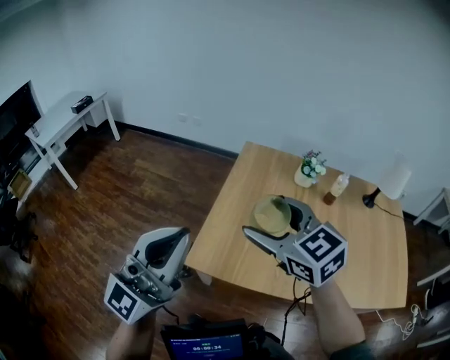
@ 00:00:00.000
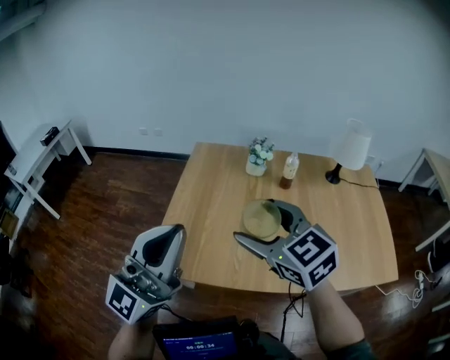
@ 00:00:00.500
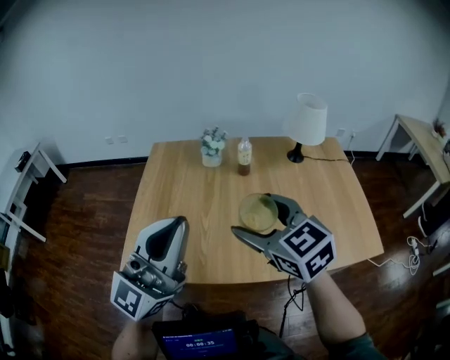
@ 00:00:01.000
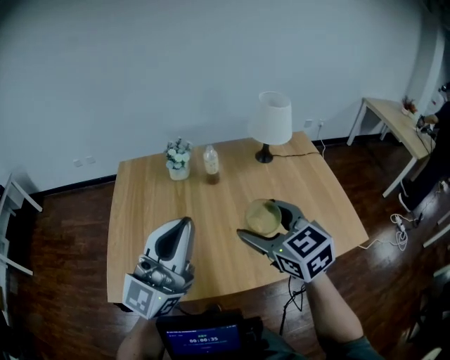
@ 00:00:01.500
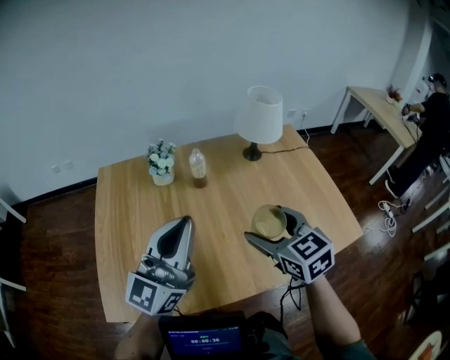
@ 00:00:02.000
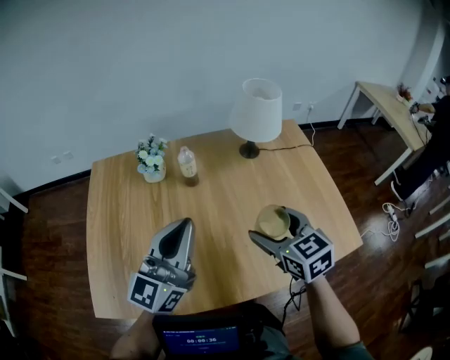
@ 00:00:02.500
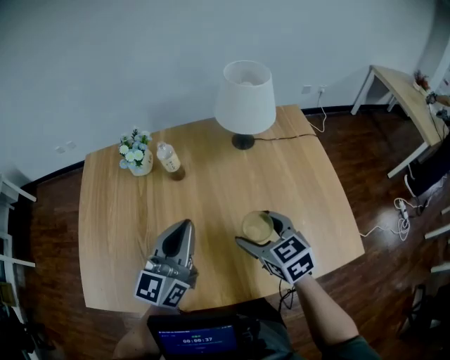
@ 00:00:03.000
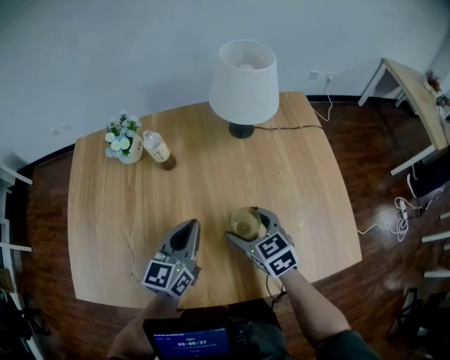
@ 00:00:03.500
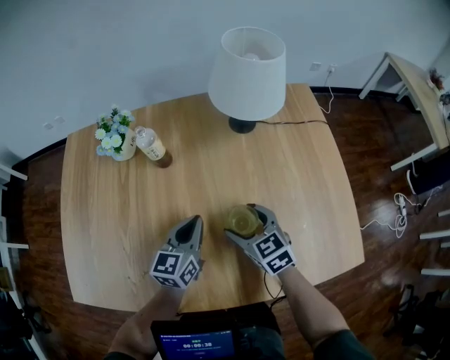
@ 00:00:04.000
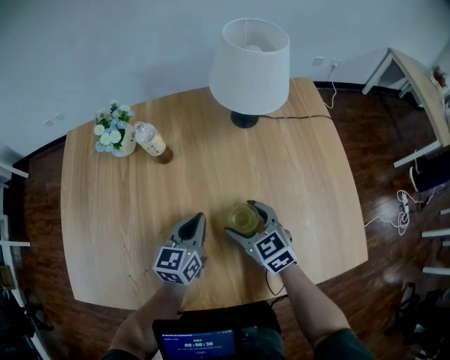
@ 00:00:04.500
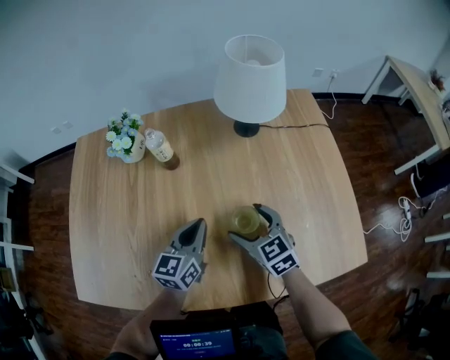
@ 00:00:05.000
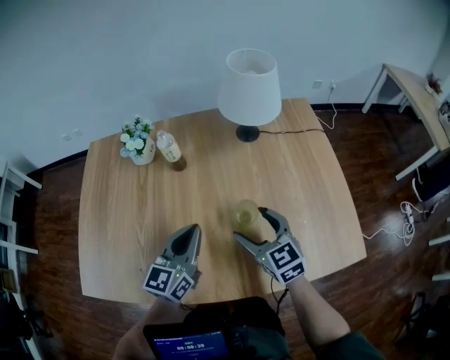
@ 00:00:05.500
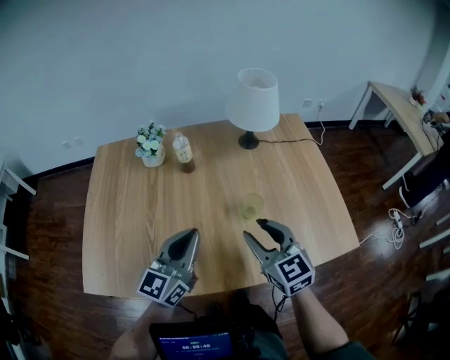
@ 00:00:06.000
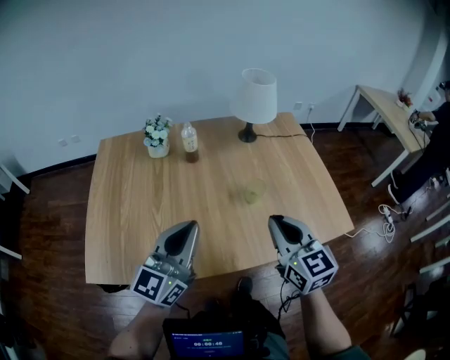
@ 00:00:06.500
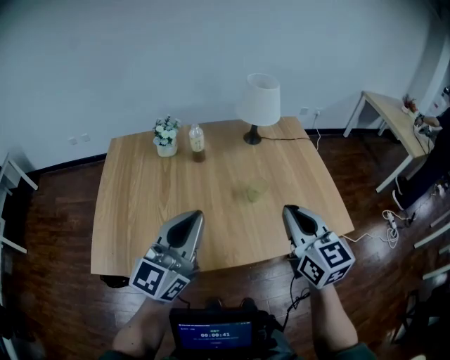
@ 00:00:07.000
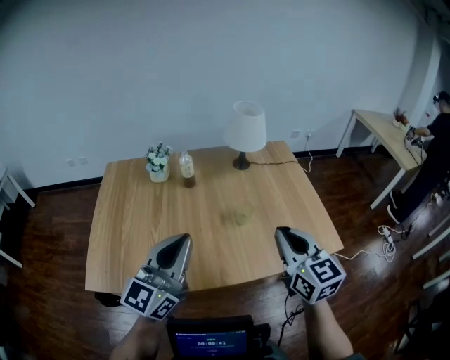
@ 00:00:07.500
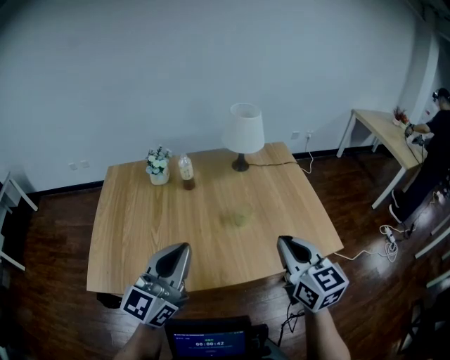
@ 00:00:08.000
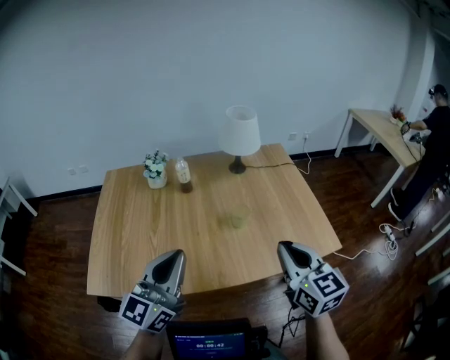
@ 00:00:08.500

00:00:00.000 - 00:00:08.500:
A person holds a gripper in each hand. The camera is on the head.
00:00:00.000 - 00:00:02.000: The two grippers travel together, some 40 cm. The left gripper turns by approximately 40 degrees. The right gripper turns by roughly 40 degrees.
00:00:02.000 - 00:00:04.000: The grippers both shift downward, to the right and forward by approximately 30 cm. The left gripper angles its fingers downward, by about 40 degrees.
00:00:04.000 - 00:00:06.500: The right gripper is displaced upward and backward by approximately 30 cm, turns by some 30 degrees, and closes. Meanwhile the left gripper is displaced backward, upward and to the left by roughly 30 cm, and turns by roughly 30 degrees.
00:00:06.500 - 00:00:08.500: The right gripper travels to the right, backward and upward by approximately 10 cm. The left gripper moves upward and backward, roughly 10 cm.

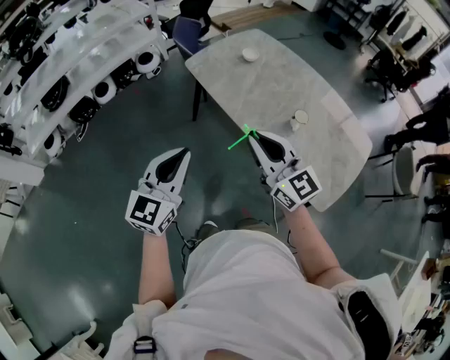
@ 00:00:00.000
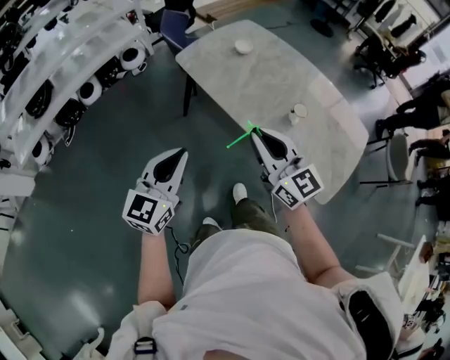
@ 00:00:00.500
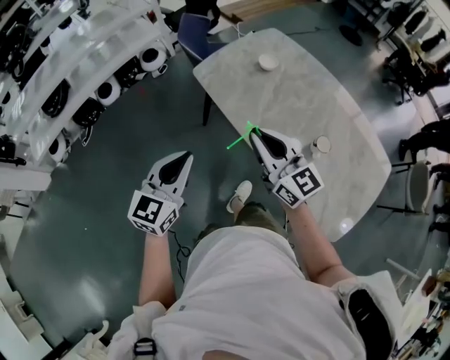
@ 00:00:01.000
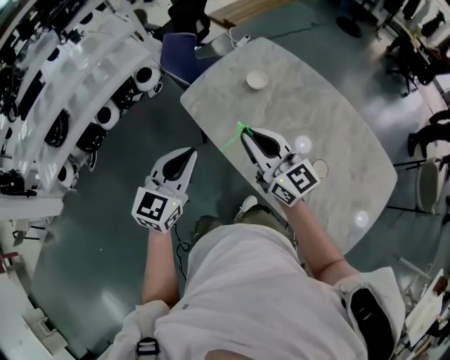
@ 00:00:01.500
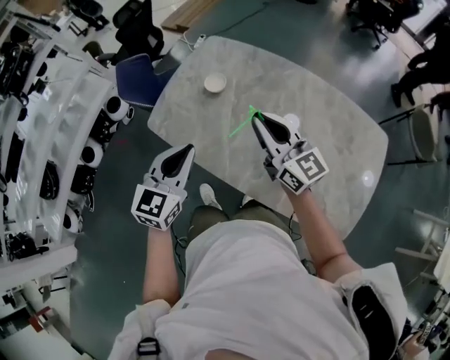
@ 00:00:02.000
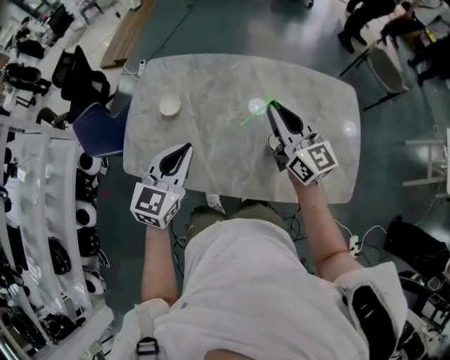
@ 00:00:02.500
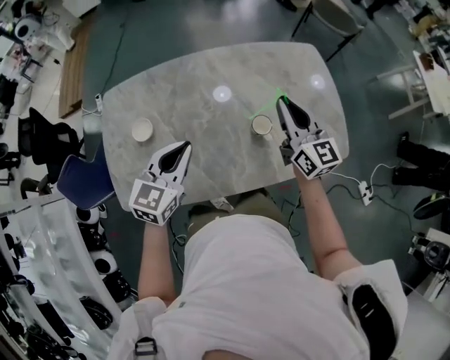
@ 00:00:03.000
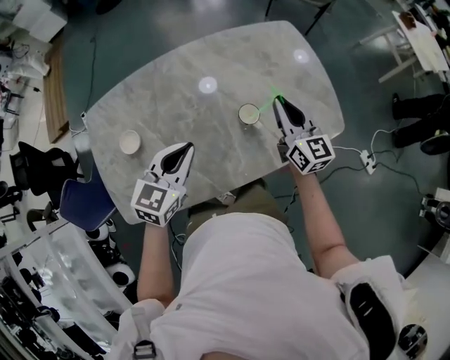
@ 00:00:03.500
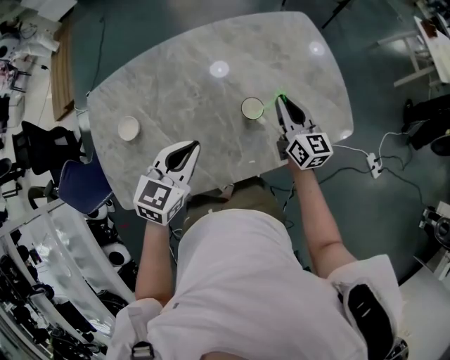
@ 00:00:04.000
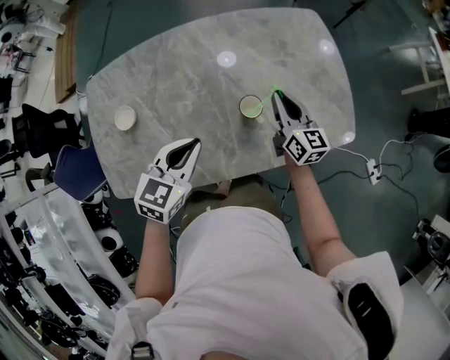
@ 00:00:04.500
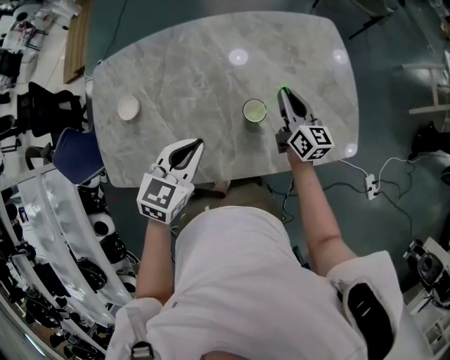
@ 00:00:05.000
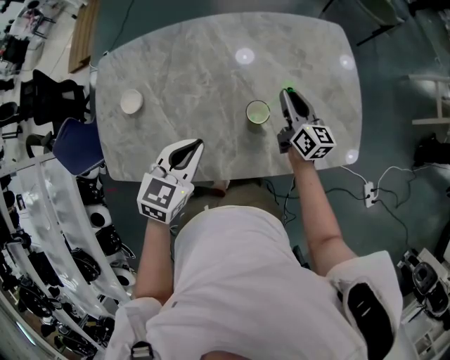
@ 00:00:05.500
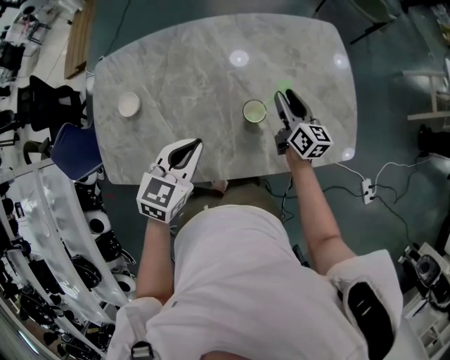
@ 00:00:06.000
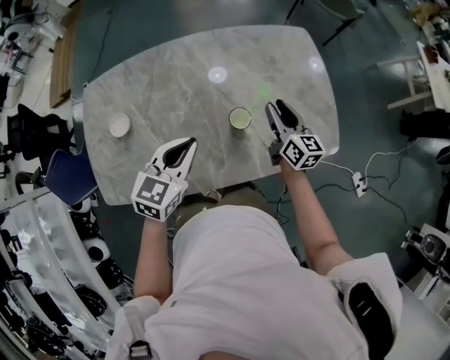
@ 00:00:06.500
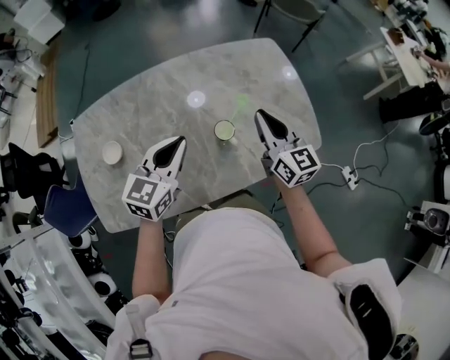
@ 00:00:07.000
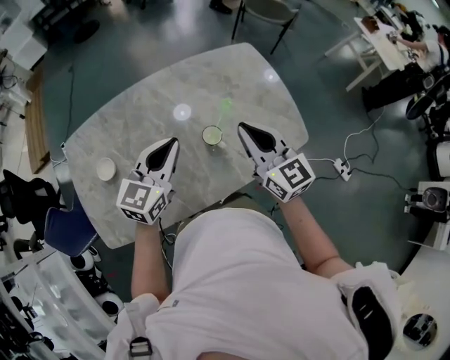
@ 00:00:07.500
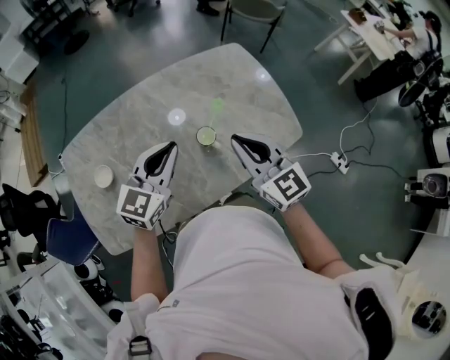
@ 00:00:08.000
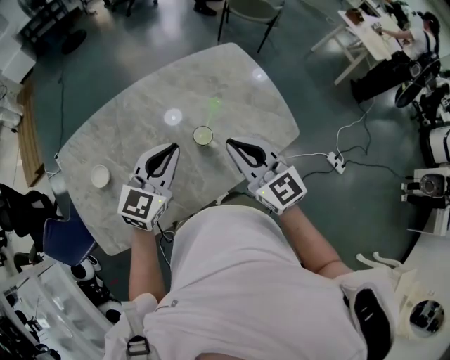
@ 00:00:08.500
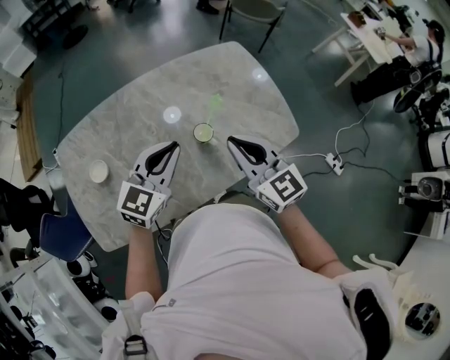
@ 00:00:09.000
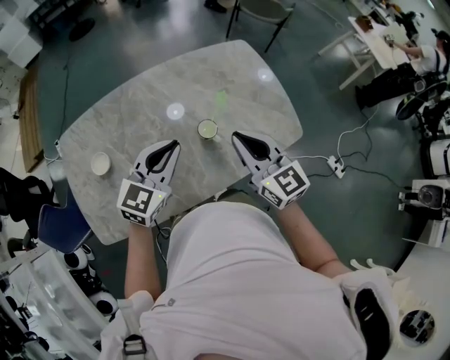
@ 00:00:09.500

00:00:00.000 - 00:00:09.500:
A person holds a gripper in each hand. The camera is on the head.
00:00:00.000 - 00:00:02.000: The pair of grippers is taken forward, roughly 40 cm. The right gripper turns by about 20 degrees. The left gripper changes its angle by roughly 20 degrees.
00:00:02.000 - 00:00:04.000: The right gripper moves approximately 30 cm, and rotates about 70 degrees. Meanwhile the left gripper ends up about 20 cm from where it was, and swivels some 60 degrees.
00:00:04.000 - 00:00:05.500: The right gripper heads forward and downward, covering some 10 cm.
00:00:05.500 - 00:00:07.500: The left gripper heads upward, covering about 10 cm, and rotates approximately 30 degrees; the right gripper is displaced upward and backward by roughly 25 cm, turns by some 30 degrees, and opens, then closes again.
00:00:07.500 - 00:00:09.500: The grippers move only a little.

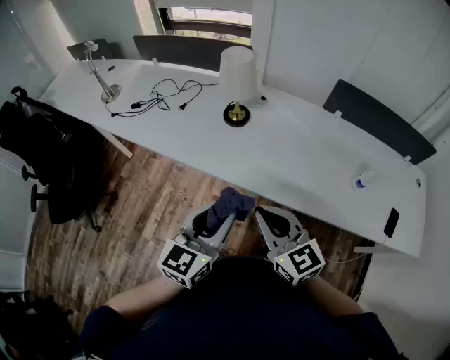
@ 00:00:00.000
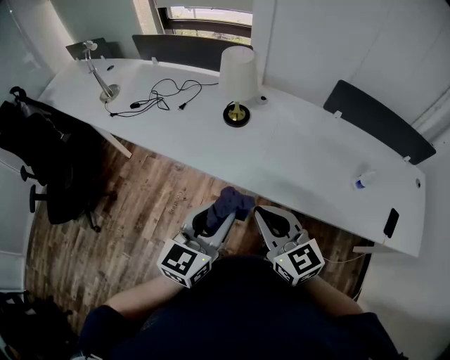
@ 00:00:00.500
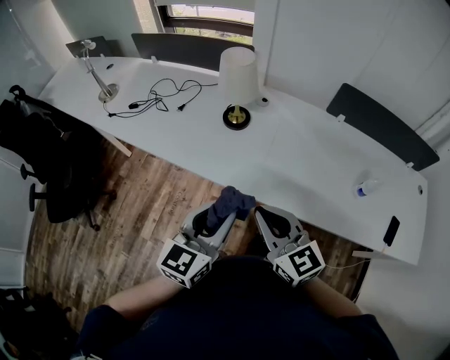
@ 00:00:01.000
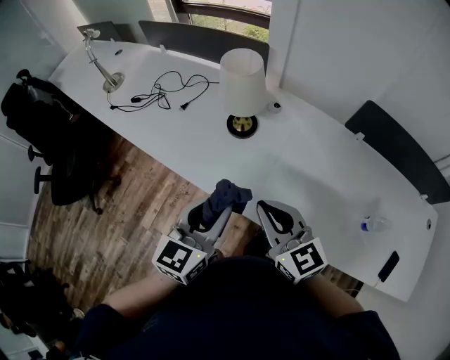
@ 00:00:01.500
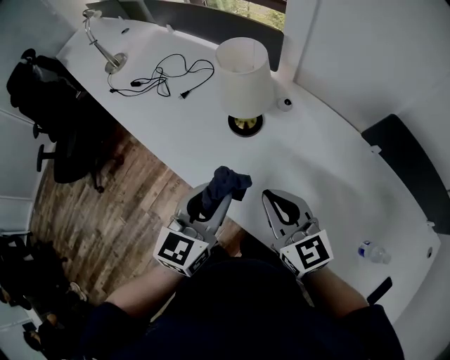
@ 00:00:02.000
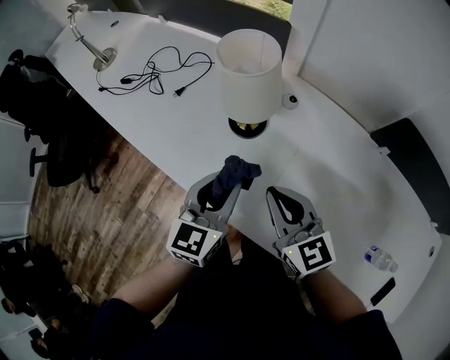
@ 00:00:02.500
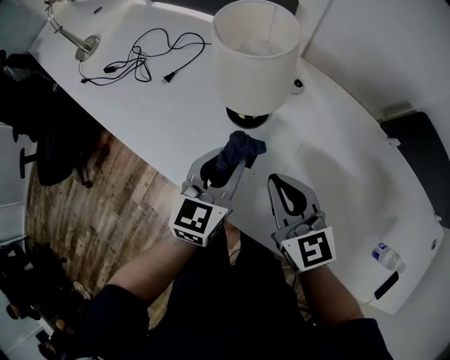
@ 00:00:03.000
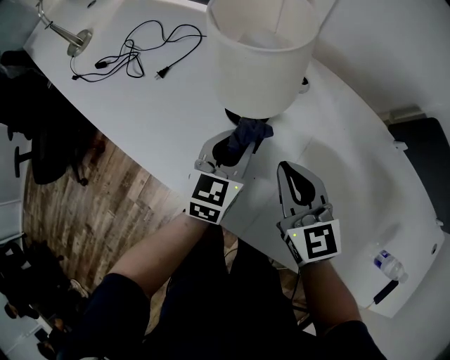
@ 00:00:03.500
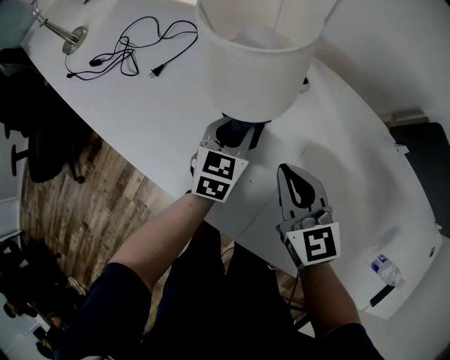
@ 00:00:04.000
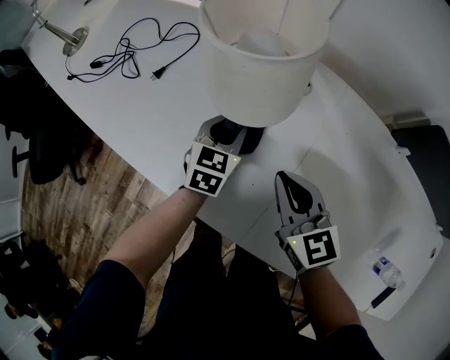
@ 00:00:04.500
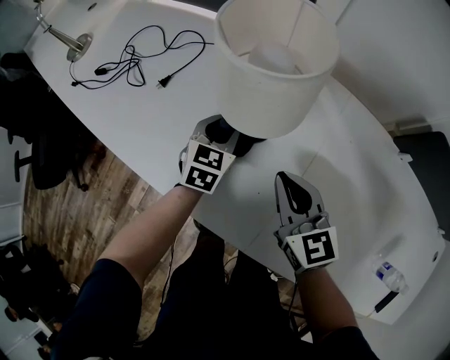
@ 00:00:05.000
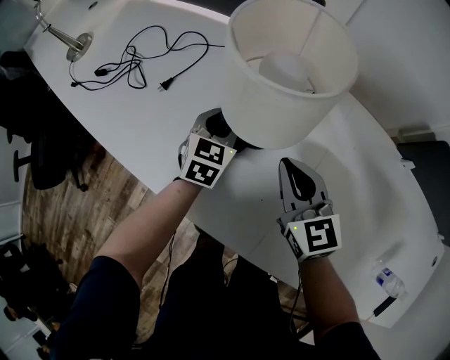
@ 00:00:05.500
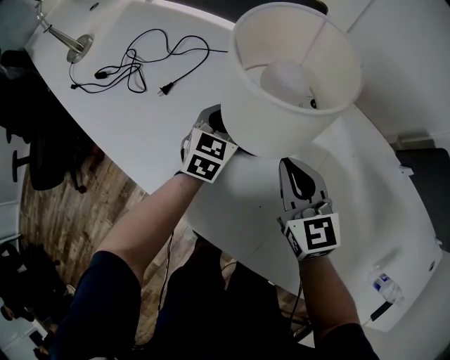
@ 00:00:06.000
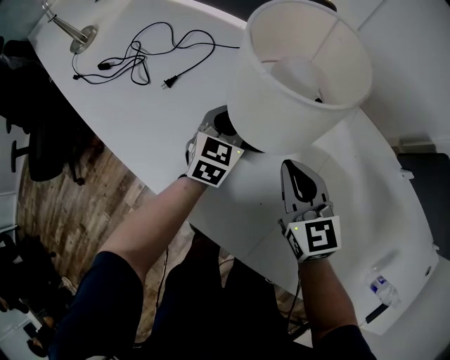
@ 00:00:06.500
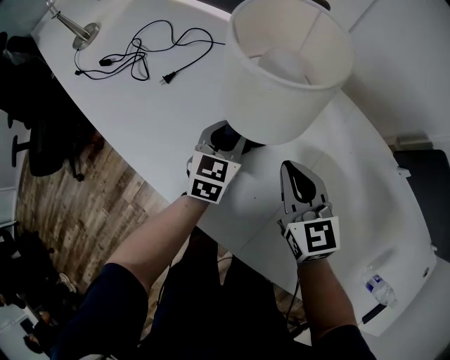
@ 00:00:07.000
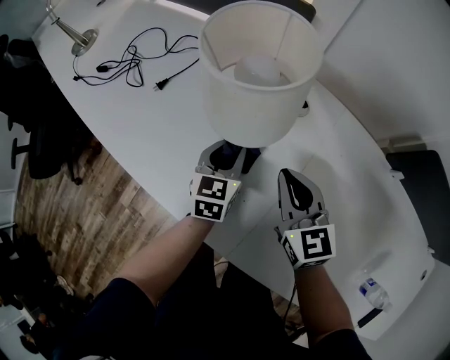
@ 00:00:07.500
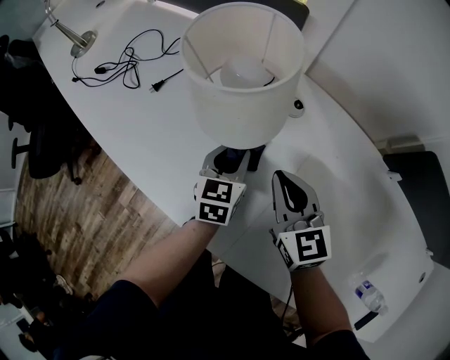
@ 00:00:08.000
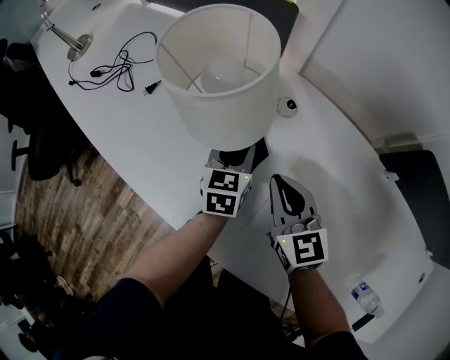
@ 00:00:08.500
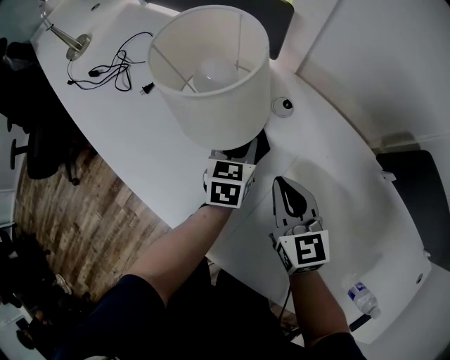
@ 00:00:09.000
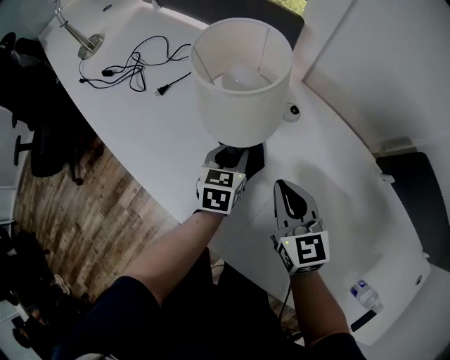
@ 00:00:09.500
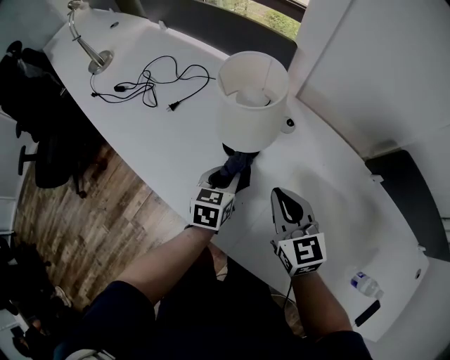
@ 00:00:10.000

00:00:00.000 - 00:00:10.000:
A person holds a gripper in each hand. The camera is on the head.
00:00:00.000 - 00:00:02.000: The grippers both shift forward by some 25 cm.
00:00:02.000 - 00:00:04.000: The left gripper shifts approximately 30 cm forward and downward. Meanwhile the right gripper moves forward and downward, about 20 cm.
00:00:04.000 - 00:00:06.000: The left gripper shifts some 10 cm forward and to the left. The right gripper is displaced forward by roughly 5 cm.
00:00:06.000 - 00:00:08.000: The right gripper changes place by approximately 5 cm, while the left gripper travels backward and to the right by approximately 10 cm.
00:00:08.000 - 00:00:10.000: The right gripper moves upward, approximately 5 cm. Meanwhile the left gripper ends up roughly 5 cm from where it was.
